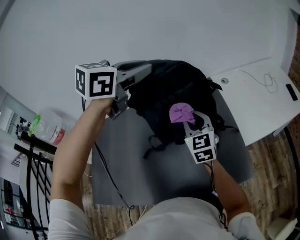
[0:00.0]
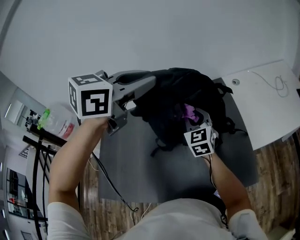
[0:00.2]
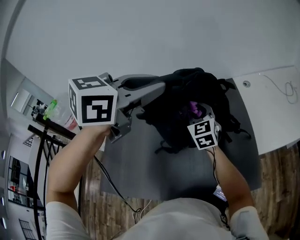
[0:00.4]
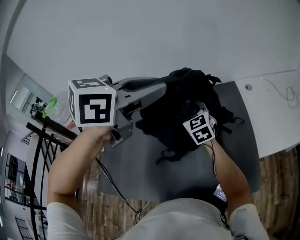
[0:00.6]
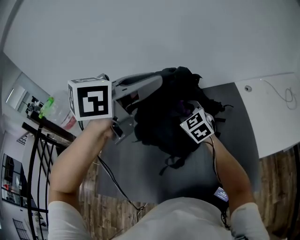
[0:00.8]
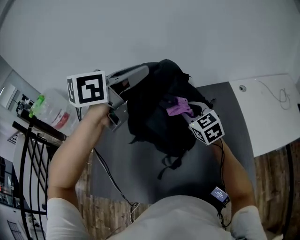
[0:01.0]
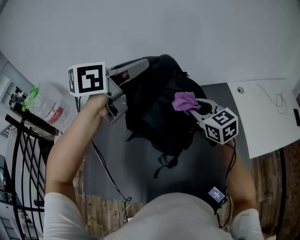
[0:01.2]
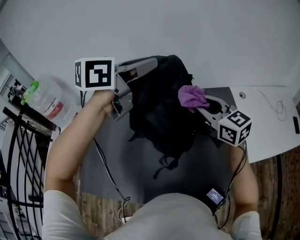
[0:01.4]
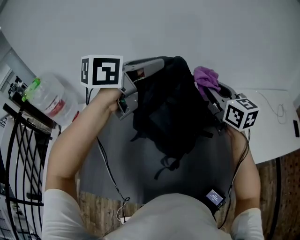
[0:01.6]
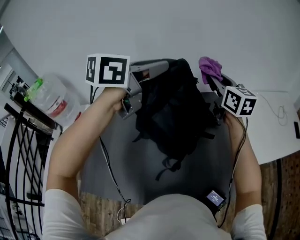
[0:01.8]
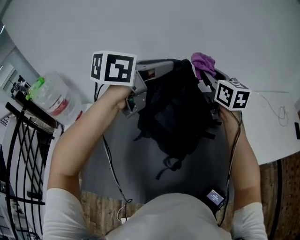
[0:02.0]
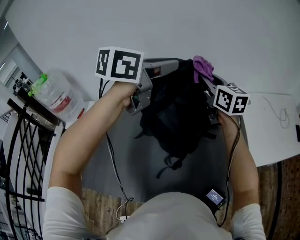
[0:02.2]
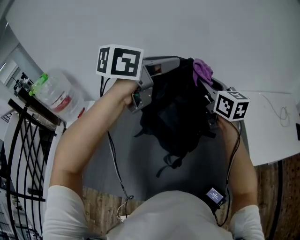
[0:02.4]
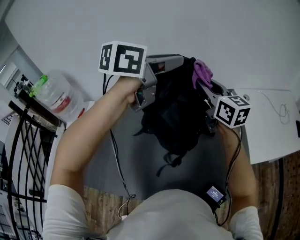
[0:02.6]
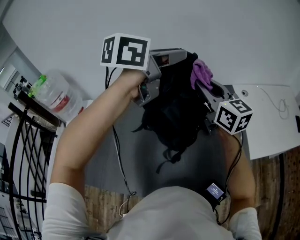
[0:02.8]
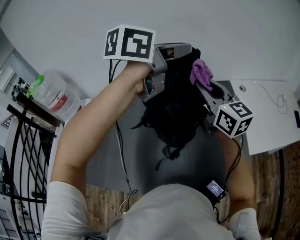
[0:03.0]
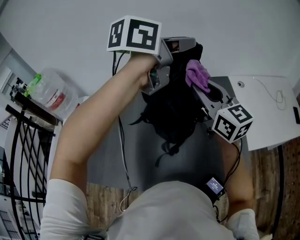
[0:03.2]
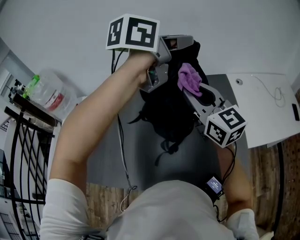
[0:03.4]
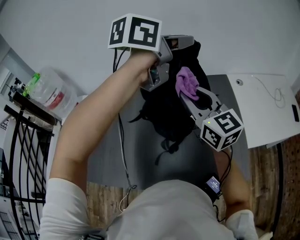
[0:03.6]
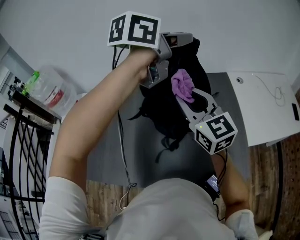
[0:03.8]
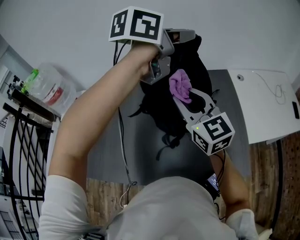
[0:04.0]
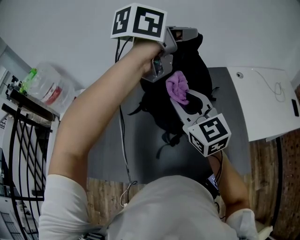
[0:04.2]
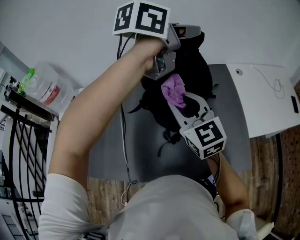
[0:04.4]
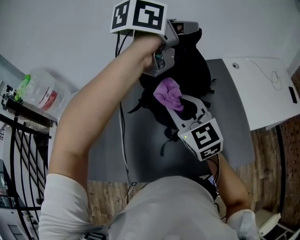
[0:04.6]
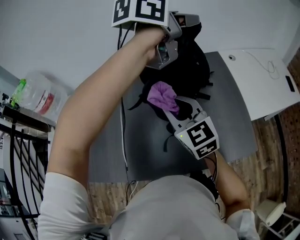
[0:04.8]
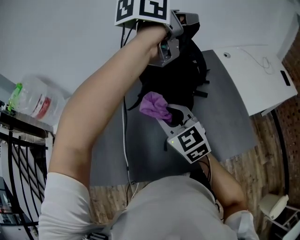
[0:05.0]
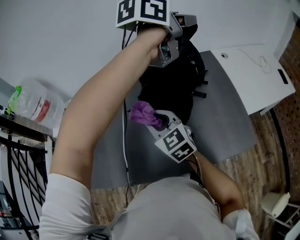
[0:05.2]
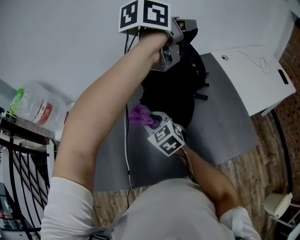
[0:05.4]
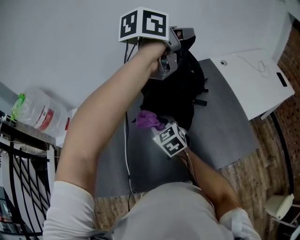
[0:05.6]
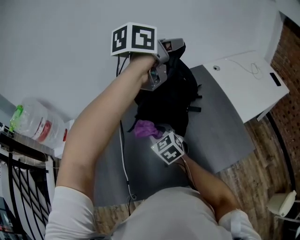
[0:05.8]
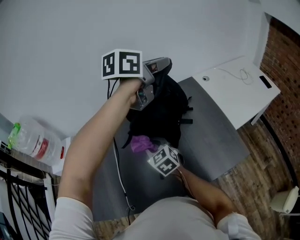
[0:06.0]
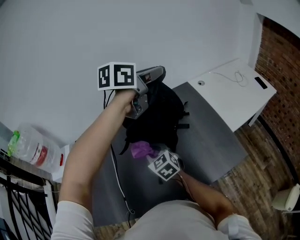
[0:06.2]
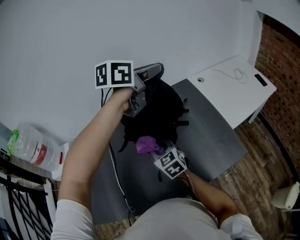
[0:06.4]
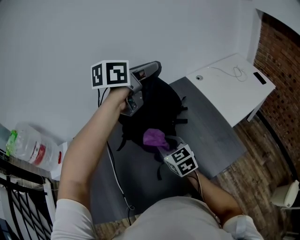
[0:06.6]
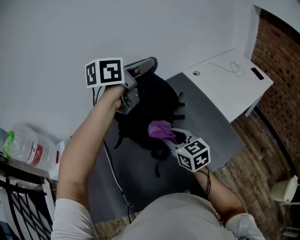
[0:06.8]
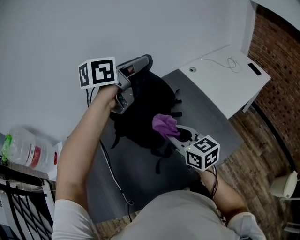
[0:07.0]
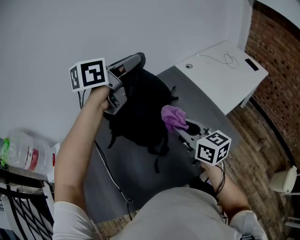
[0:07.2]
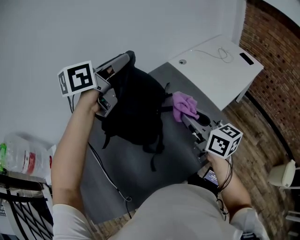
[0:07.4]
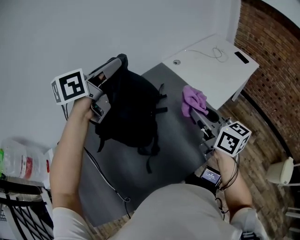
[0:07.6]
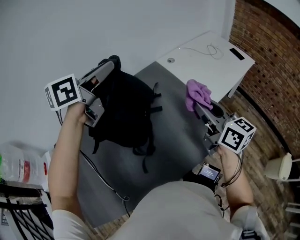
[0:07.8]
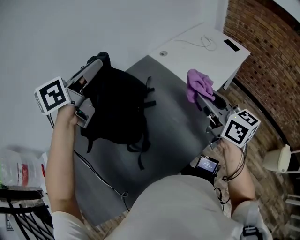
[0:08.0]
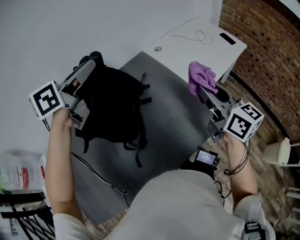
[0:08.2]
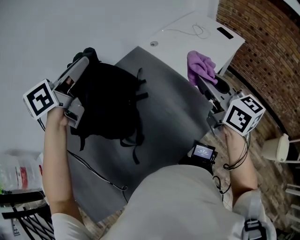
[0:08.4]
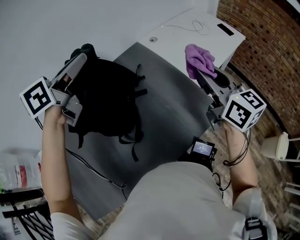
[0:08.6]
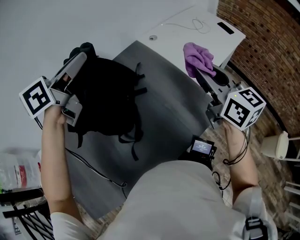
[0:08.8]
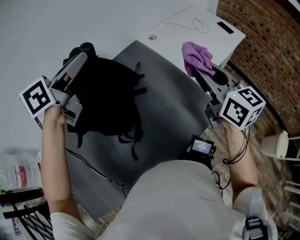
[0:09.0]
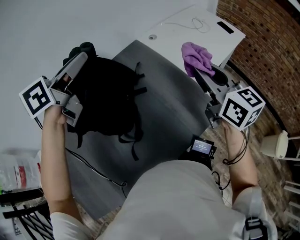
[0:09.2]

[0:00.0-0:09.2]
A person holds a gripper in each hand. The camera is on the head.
0.0 to 1.6 s: The left gripper shifts roughly 15 cm to the left, and swivels approximately 30 degrees. Meanwhile the right gripper travels upward, forward and to the left by roughly 15 cm, and swivels approximately 30 degrees.
1.6 to 3.0 s: The right gripper shifts roughly 10 cm backward. The left gripper heads to the right, covering roughly 10 cm.
3.0 to 4.6 s: The right gripper goes roughly 20 cm backward, to the left and downward, and rotates approximately 20 degrees.
4.6 to 6.2 s: The right gripper shifts approximately 15 cm downward and to the left, and rotates approximately 20 degrees.
6.2 to 7.6 s: The right gripper heads to the right and upward, covering roughly 35 cm, and swivels approximately 50 degrees.
7.6 to 9.2 s: The right gripper heads to the right, covering roughly 10 cm.

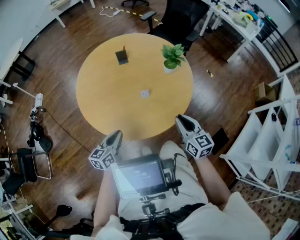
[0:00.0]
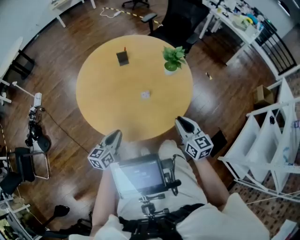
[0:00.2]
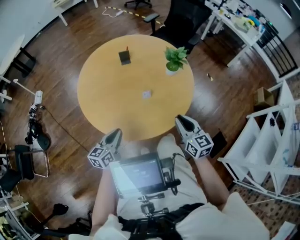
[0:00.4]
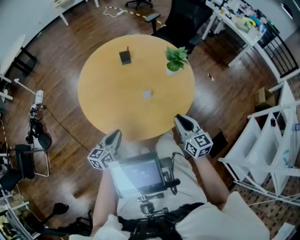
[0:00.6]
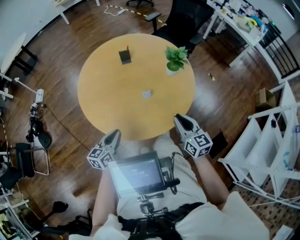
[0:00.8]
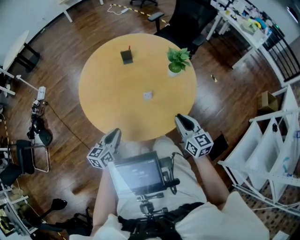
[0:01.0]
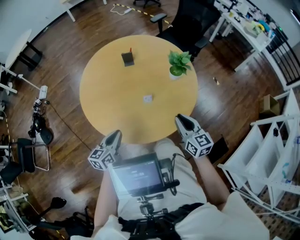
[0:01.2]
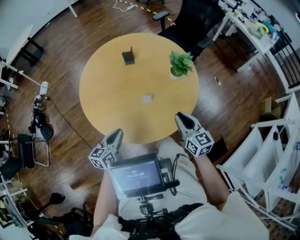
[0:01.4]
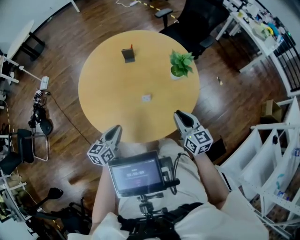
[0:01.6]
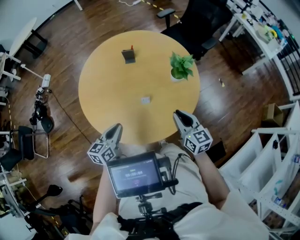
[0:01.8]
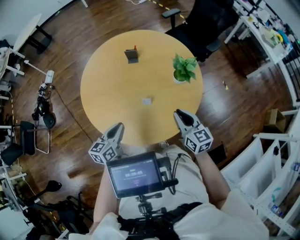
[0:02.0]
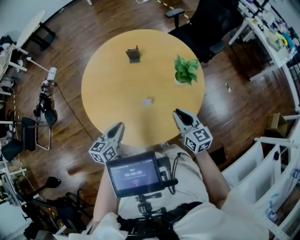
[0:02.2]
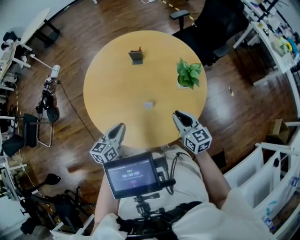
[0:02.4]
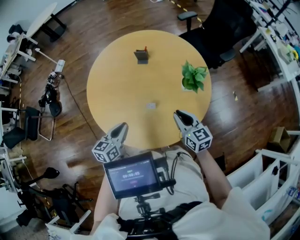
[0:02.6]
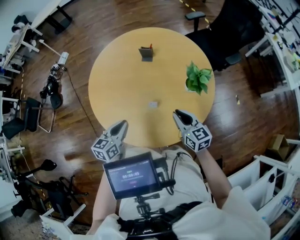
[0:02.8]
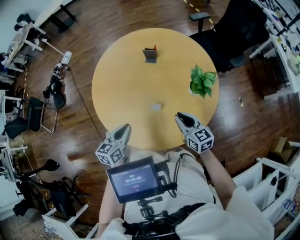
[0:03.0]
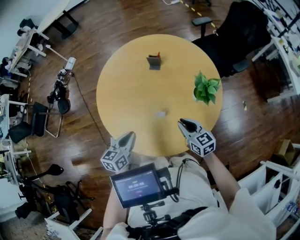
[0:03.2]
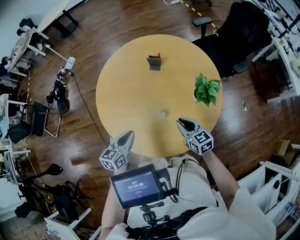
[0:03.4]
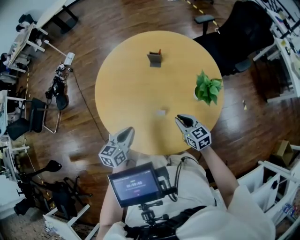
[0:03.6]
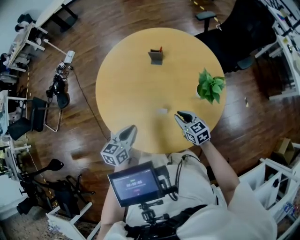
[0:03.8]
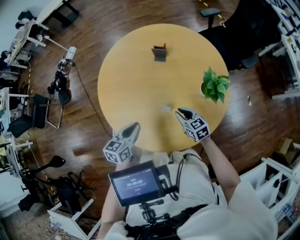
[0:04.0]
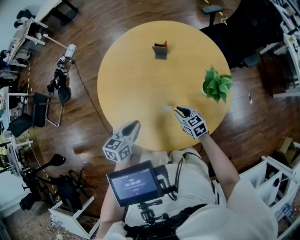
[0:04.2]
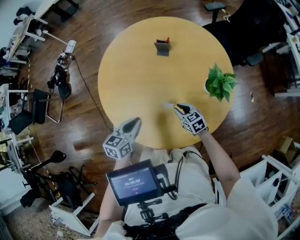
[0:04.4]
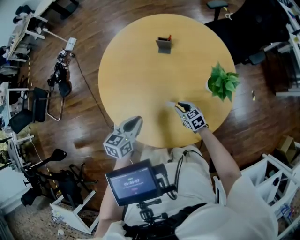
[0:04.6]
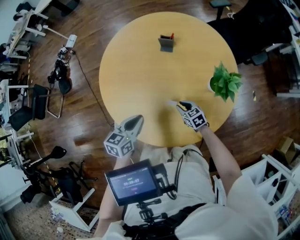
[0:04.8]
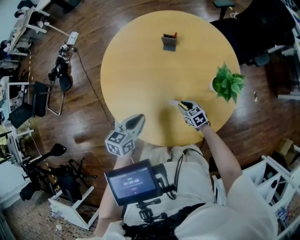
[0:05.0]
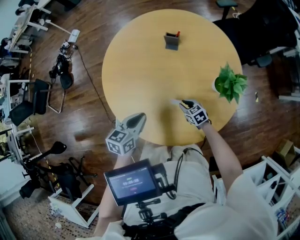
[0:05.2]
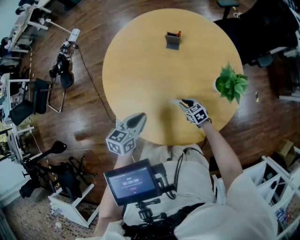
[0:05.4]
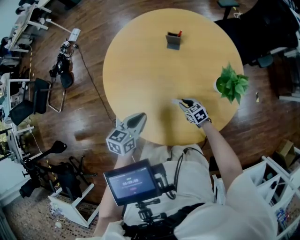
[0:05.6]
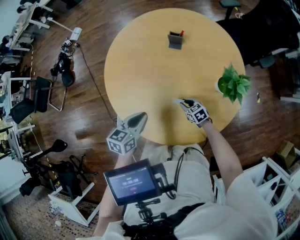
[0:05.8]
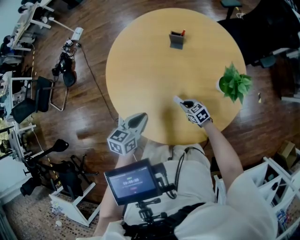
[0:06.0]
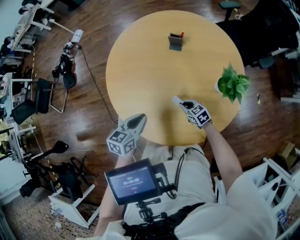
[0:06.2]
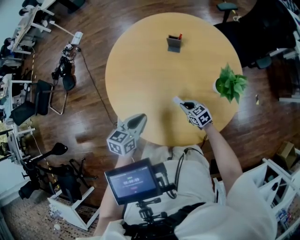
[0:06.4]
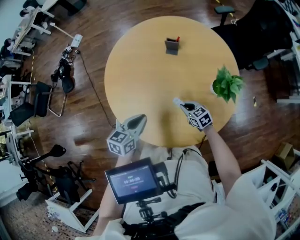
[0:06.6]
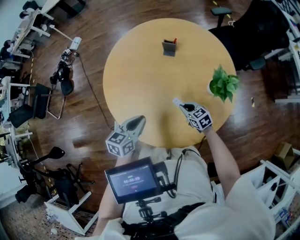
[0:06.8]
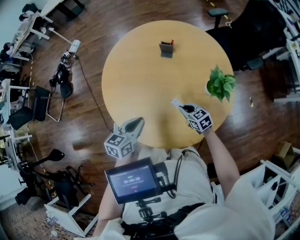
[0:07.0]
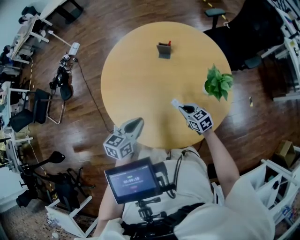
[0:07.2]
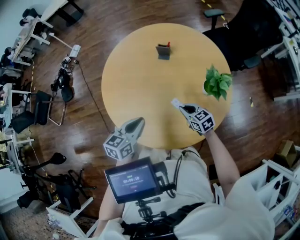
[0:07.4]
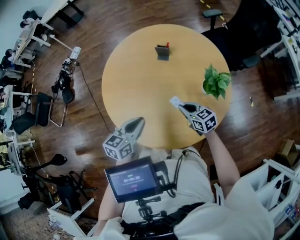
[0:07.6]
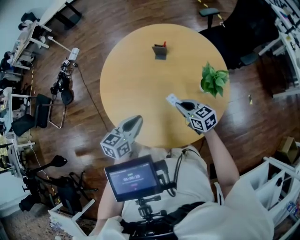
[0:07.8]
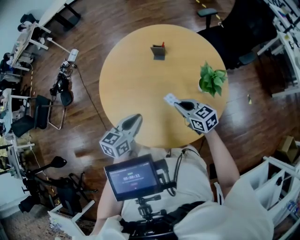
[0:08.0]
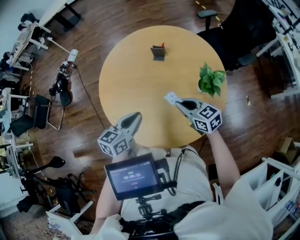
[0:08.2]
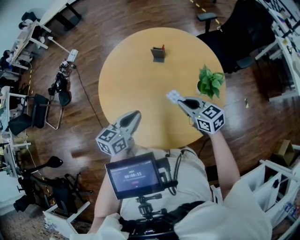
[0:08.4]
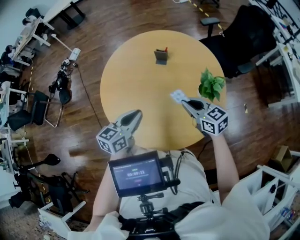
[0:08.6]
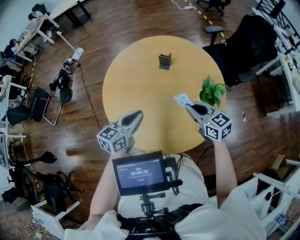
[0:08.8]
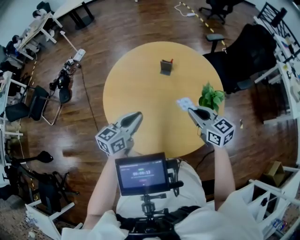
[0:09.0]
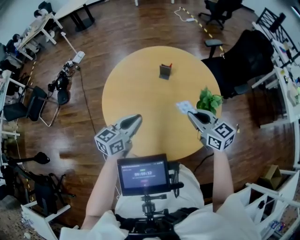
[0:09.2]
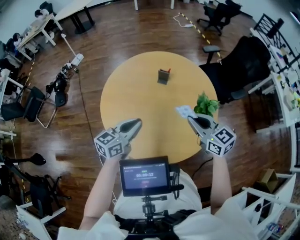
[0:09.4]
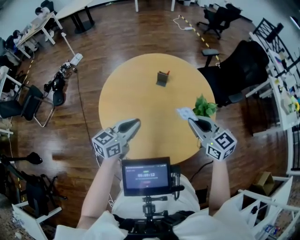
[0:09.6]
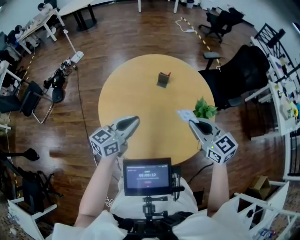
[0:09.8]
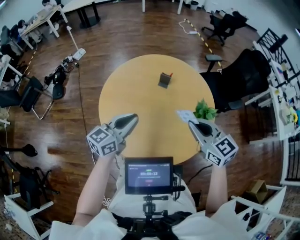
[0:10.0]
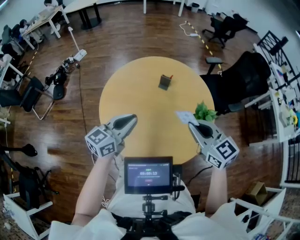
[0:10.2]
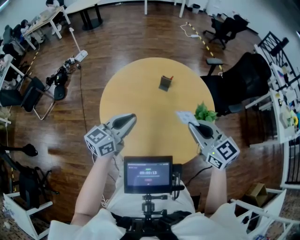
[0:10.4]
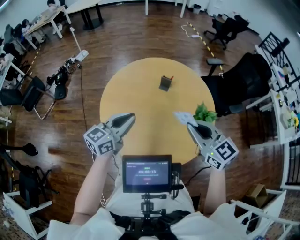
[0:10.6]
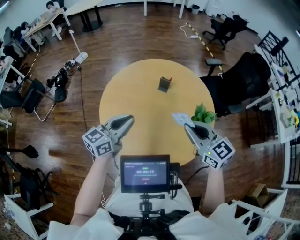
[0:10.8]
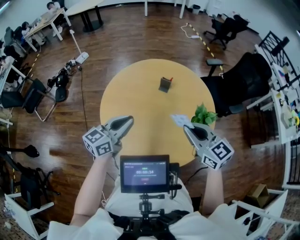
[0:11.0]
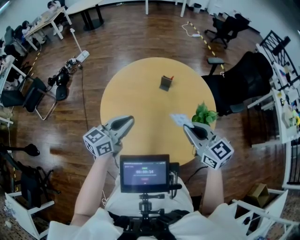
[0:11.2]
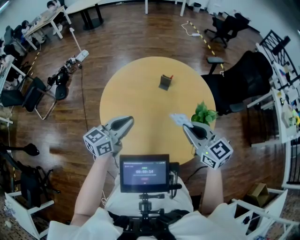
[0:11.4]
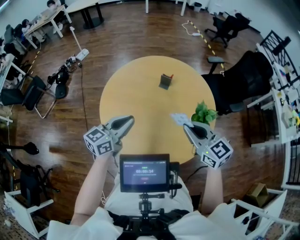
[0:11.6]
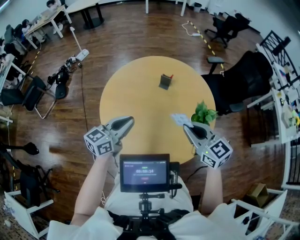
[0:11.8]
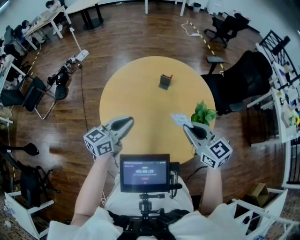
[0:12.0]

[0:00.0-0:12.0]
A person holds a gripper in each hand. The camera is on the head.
0.0 to 1.6 s: The right gripper goes roughly 10 cm forward. The left gripper shifts some 5 cm forward.
1.6 to 3.0 s: The left gripper shifts by roughly 5 cm. The right gripper heads forward and downward, covering approximately 15 cm, and rotates roughly 20 degrees.
3.0 to 4.4 s: The right gripper moves downward, about 15 cm, and rotates roughly 20 degrees; the left gripper shifts approximately 5 cm forward.
4.4 to 6.0 s: The right gripper is displaced downward by some 10 cm.
6.0 to 7.6 s: The right gripper travels upward by approximately 20 cm, while the left gripper shifts about 5 cm upward.
7.6 to 9.0 s: The right gripper moves upward, about 20 cm; the left gripper is displaced upward by approximately 10 cm.
9.0 to 10.4 s: The right gripper goes approximately 15 cm upward; the left gripper moves upward, some 10 cm.
10.4 to 12.0 s: The grippers move only a little.

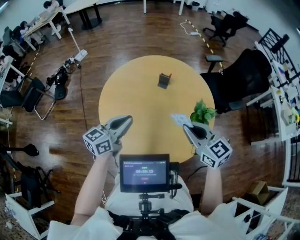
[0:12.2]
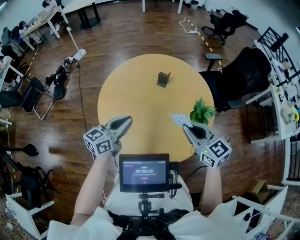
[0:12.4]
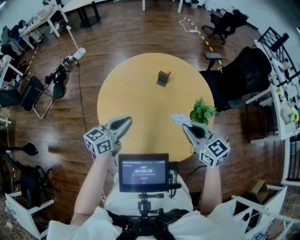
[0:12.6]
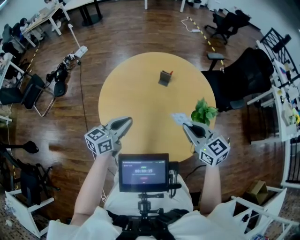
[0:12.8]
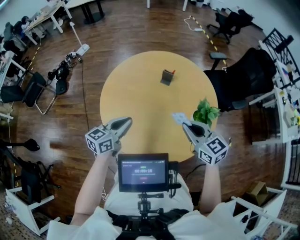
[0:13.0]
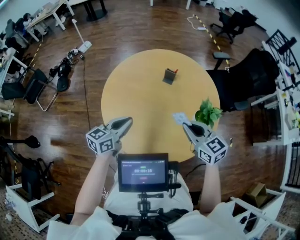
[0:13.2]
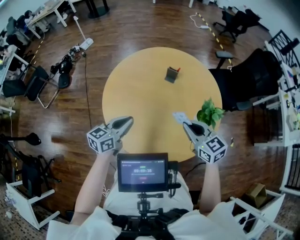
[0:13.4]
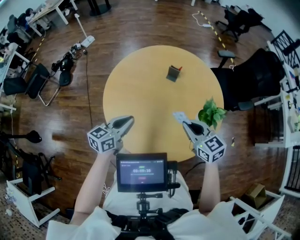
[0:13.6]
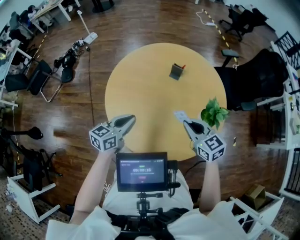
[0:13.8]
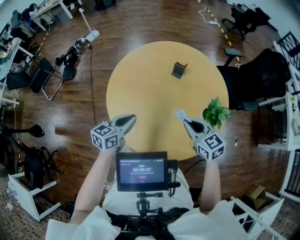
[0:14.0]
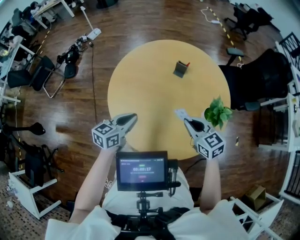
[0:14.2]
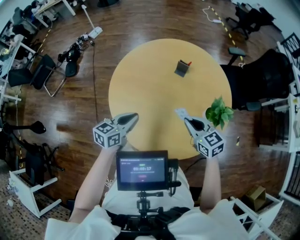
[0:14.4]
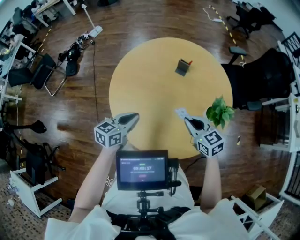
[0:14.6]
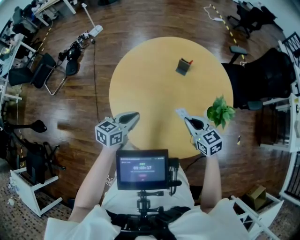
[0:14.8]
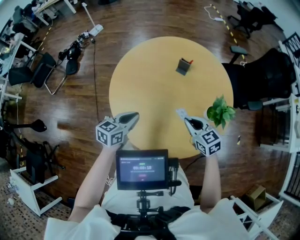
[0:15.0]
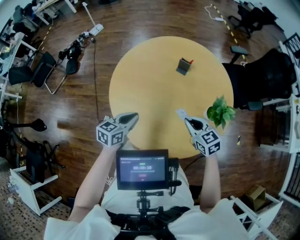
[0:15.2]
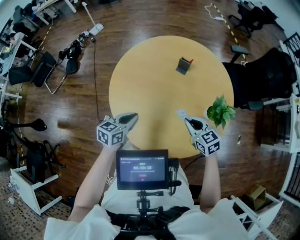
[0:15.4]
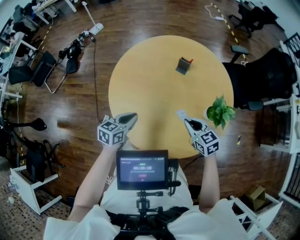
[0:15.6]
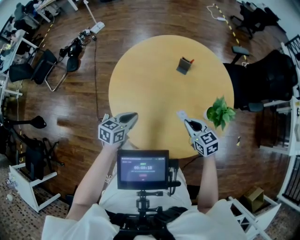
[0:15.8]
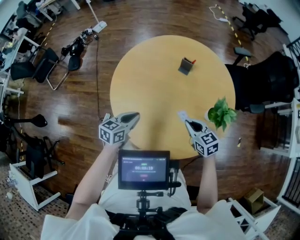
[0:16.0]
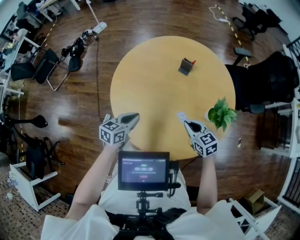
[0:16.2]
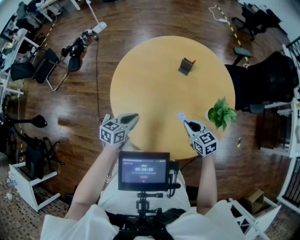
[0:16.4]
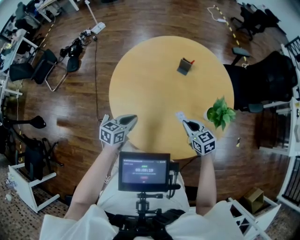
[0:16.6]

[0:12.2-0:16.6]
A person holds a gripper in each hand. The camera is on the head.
12.2 to 13.6 s: Both grippers travel together downward, about 10 cm.
13.6 to 15.2 s: The grippers both shift downward by about 10 cm.
15.2 to 16.6 s: Both grippers travel together downward, roughly 5 cm.
